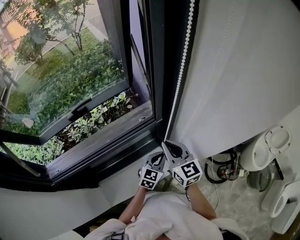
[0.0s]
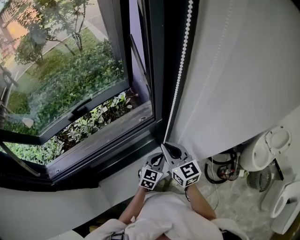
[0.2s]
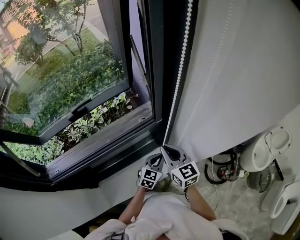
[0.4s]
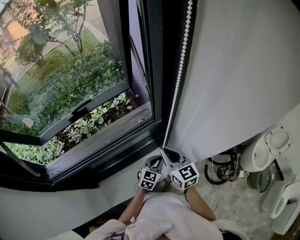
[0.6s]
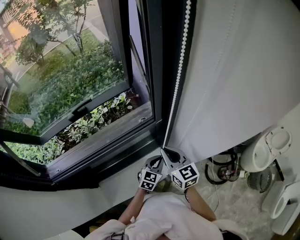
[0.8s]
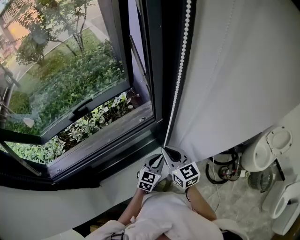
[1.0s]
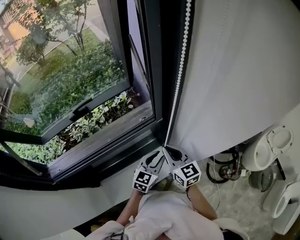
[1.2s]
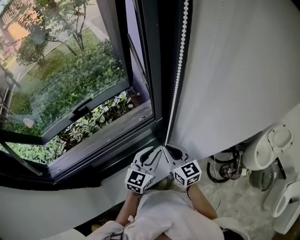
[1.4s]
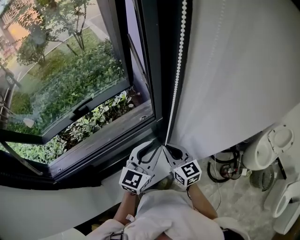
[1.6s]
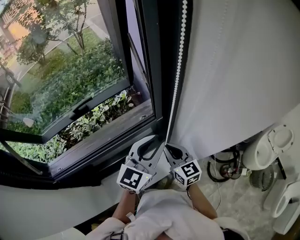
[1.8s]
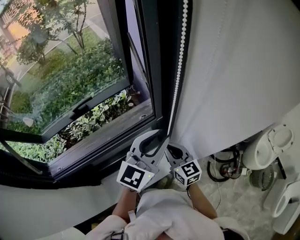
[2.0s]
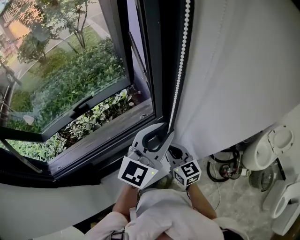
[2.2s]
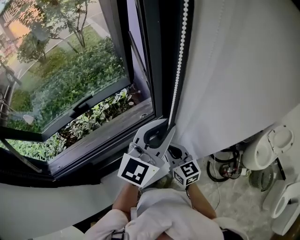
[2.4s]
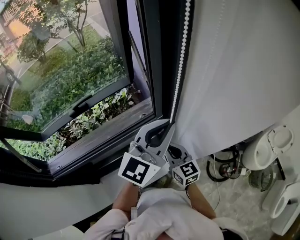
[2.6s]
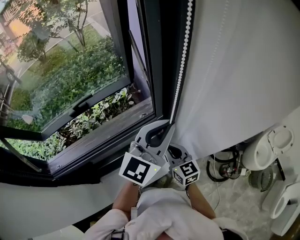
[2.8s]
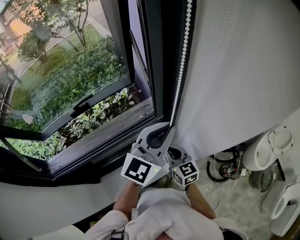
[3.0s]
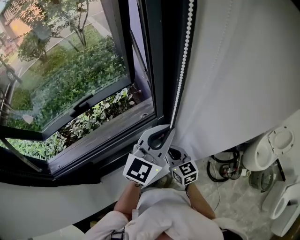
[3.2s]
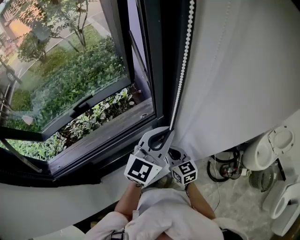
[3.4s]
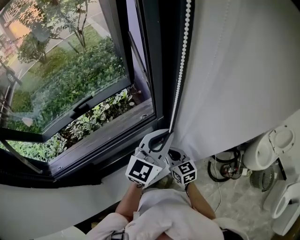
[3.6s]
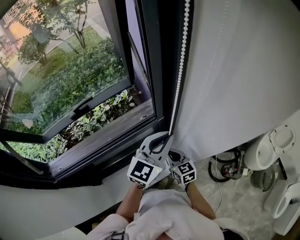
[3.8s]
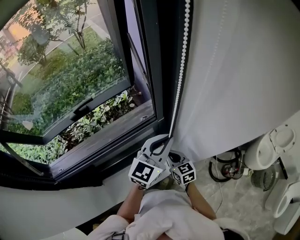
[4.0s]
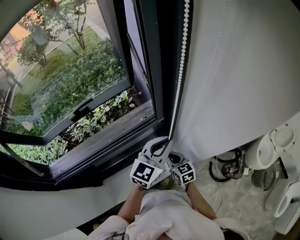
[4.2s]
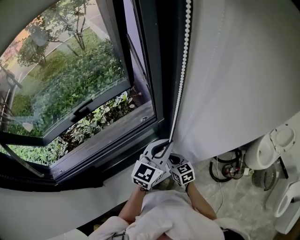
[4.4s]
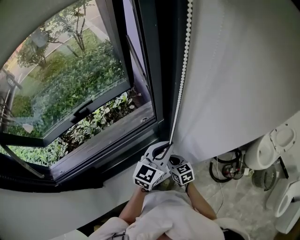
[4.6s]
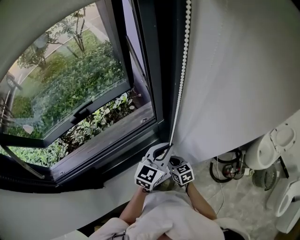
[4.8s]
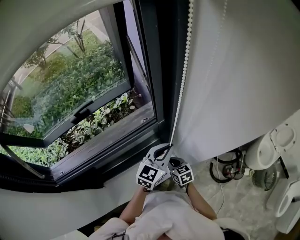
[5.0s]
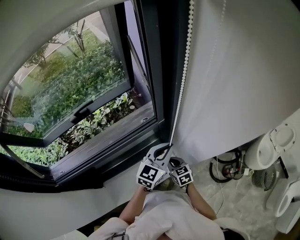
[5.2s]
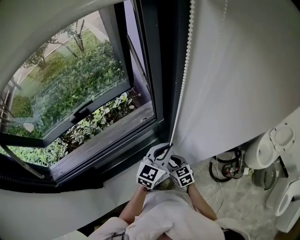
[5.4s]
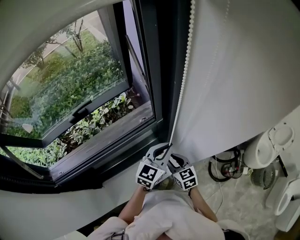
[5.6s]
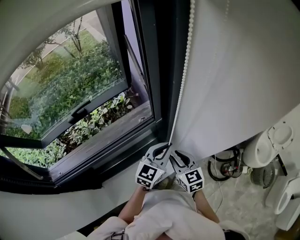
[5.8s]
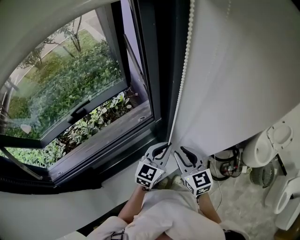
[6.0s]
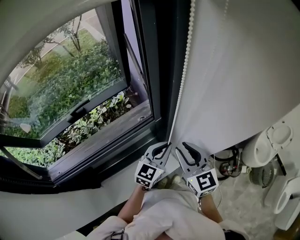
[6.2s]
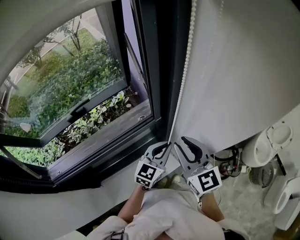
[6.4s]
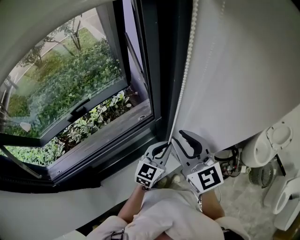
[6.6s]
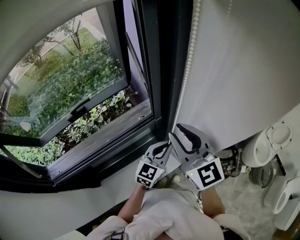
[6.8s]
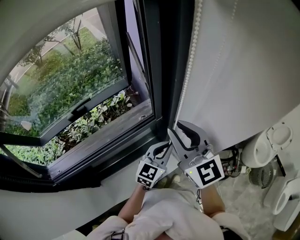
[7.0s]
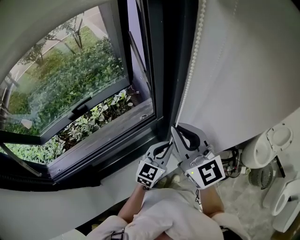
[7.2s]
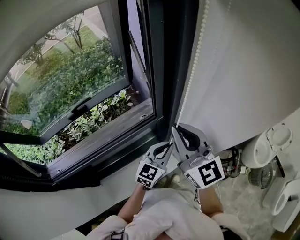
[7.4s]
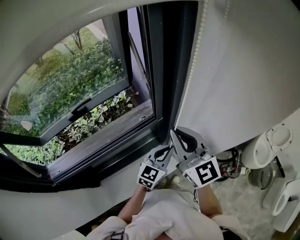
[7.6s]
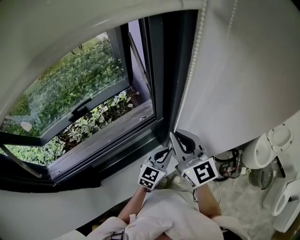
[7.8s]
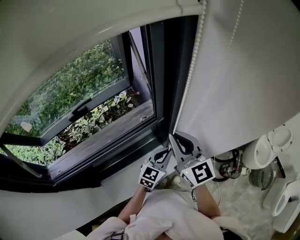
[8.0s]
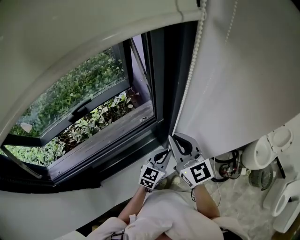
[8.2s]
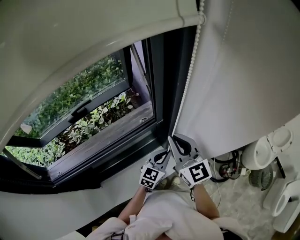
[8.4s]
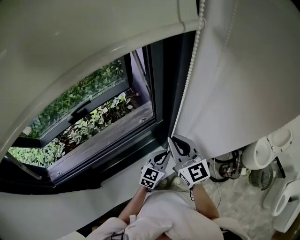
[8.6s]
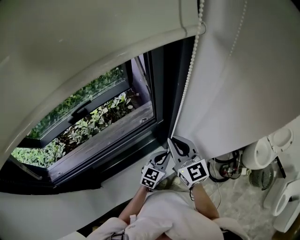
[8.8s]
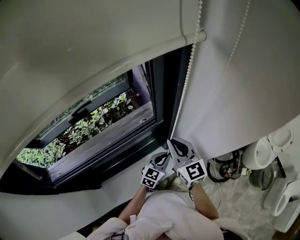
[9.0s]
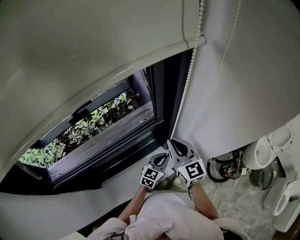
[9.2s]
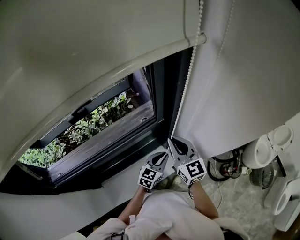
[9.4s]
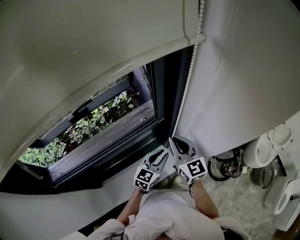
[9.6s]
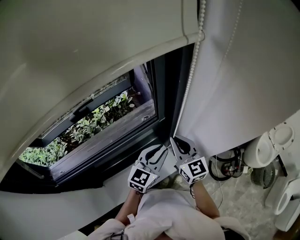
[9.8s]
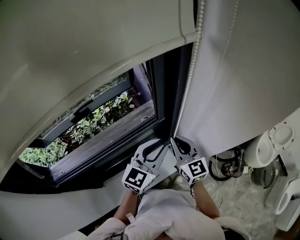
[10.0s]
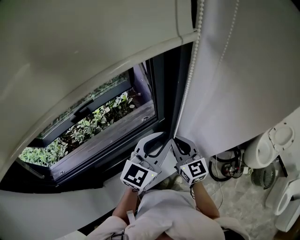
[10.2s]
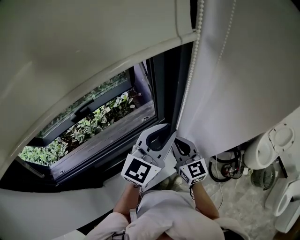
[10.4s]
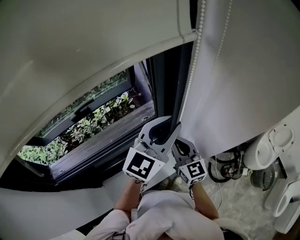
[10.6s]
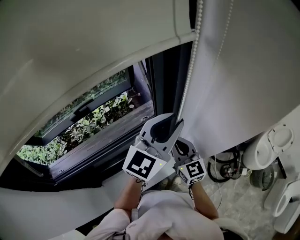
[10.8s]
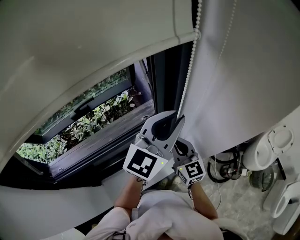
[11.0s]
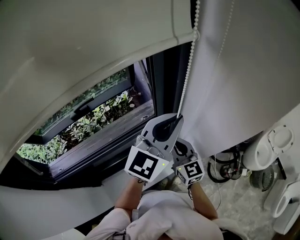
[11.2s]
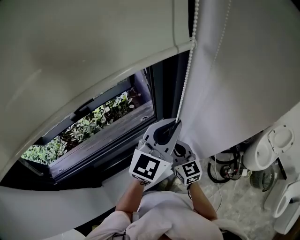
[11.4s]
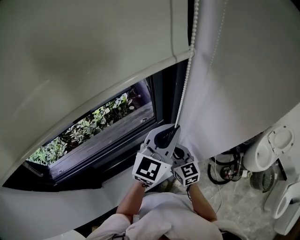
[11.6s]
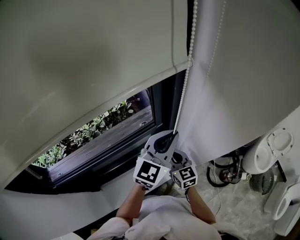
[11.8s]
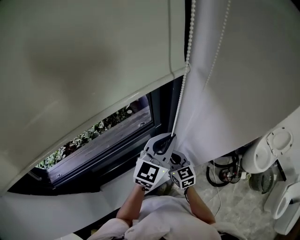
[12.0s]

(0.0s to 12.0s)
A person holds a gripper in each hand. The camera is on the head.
0.0s - 1.6s: The left gripper travels upward by about 20 cm, and opens up.
1.6s - 3.0s: The left gripper heads upward, covering about 10 cm.
3.0s - 4.4s: The two grippers go about 15 cm downward.
4.4s - 6.0s: The right gripper travels upward by some 15 cm, changes its angle by about 20 degrees, and opens.
6.0s - 7.6s: The right gripper shifts some 15 cm upward, swivels about 20 degrees, and closes.
7.6s - 9.0s: The grippers both shift downward by roughly 10 cm.
9.0s - 10.4s: The left gripper heads upward, covering some 30 cm, and changes its angle by approximately 20 degrees.
10.4s - 12.0s: The left gripper shifts roughly 5 cm downward; the right gripper moves downward, approximately 10 cm.

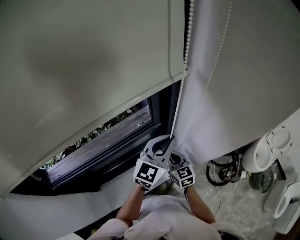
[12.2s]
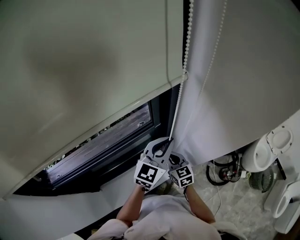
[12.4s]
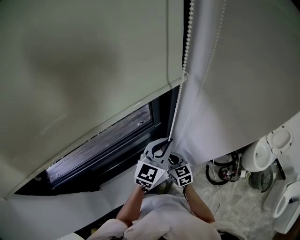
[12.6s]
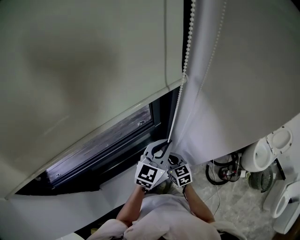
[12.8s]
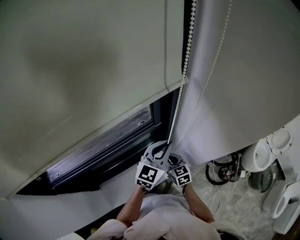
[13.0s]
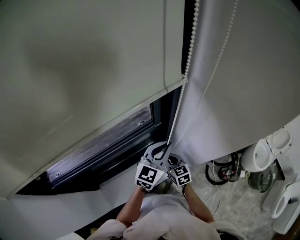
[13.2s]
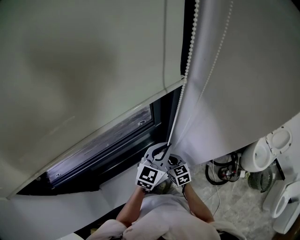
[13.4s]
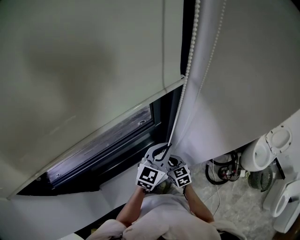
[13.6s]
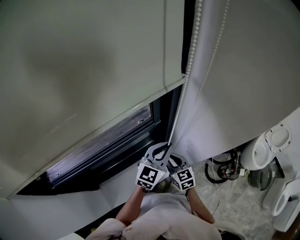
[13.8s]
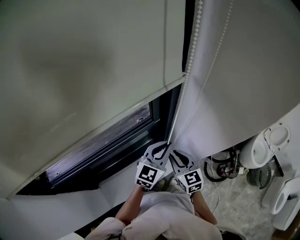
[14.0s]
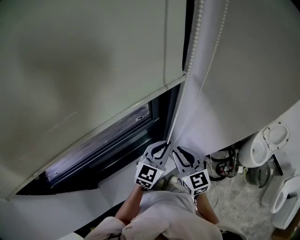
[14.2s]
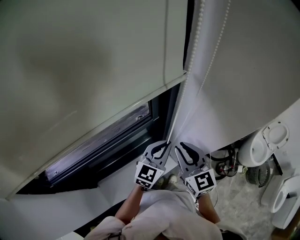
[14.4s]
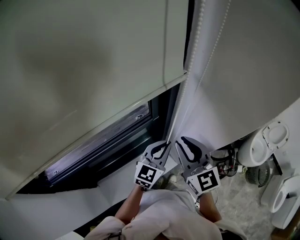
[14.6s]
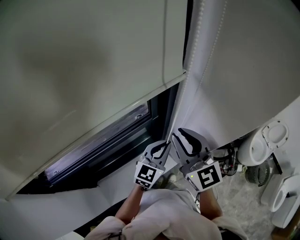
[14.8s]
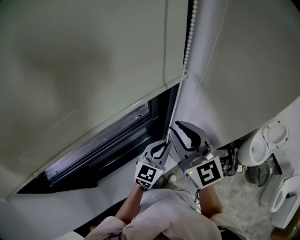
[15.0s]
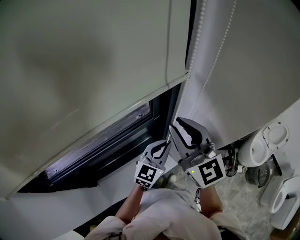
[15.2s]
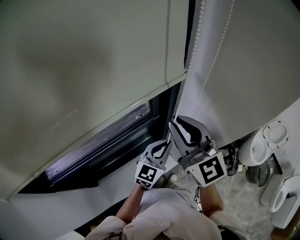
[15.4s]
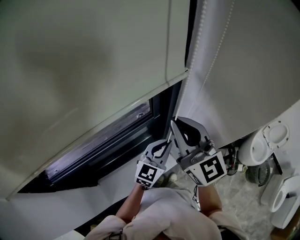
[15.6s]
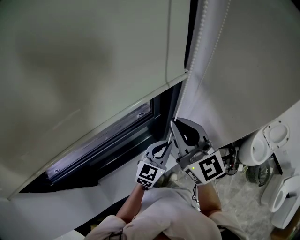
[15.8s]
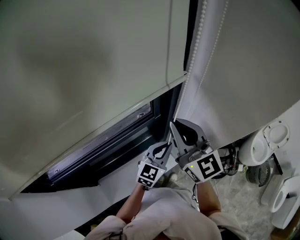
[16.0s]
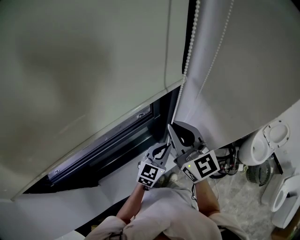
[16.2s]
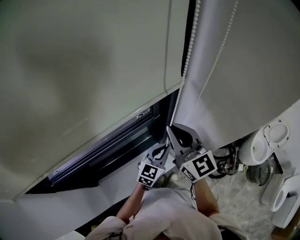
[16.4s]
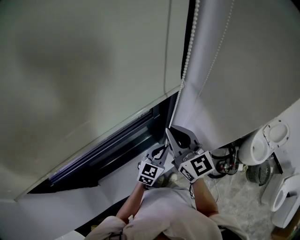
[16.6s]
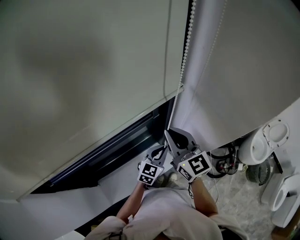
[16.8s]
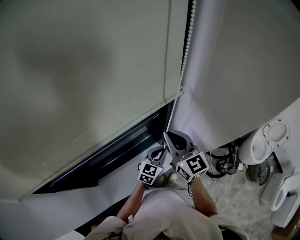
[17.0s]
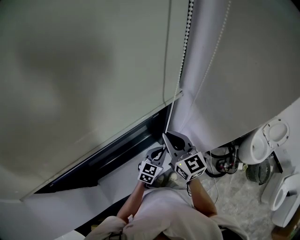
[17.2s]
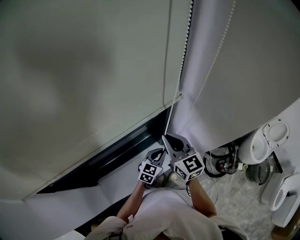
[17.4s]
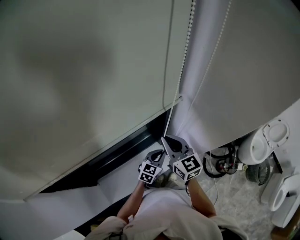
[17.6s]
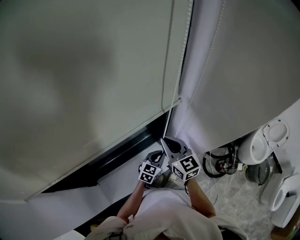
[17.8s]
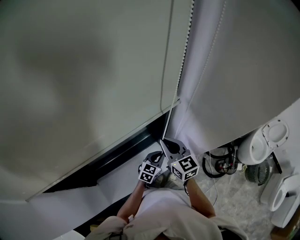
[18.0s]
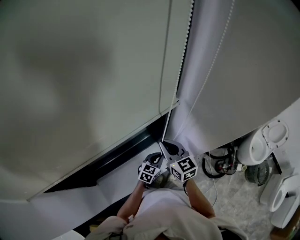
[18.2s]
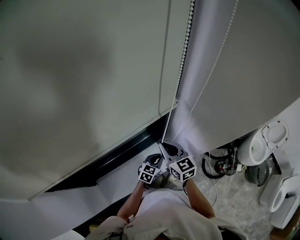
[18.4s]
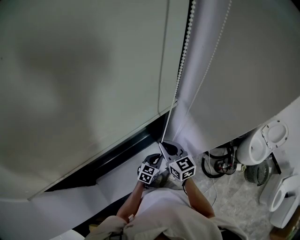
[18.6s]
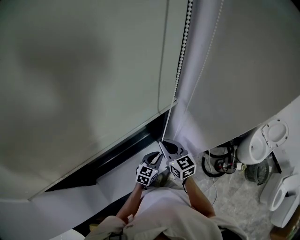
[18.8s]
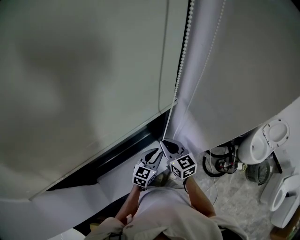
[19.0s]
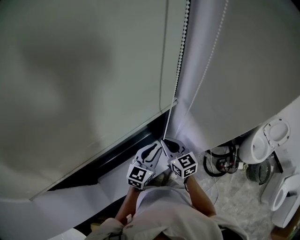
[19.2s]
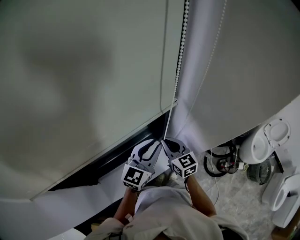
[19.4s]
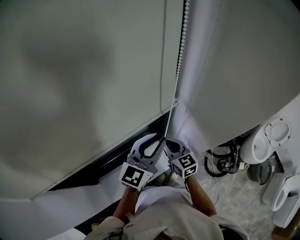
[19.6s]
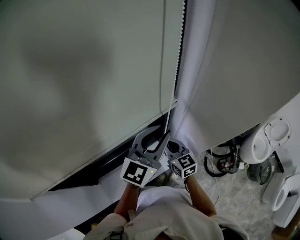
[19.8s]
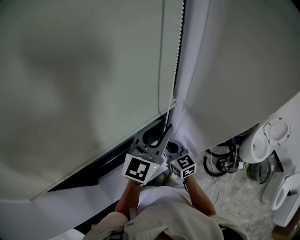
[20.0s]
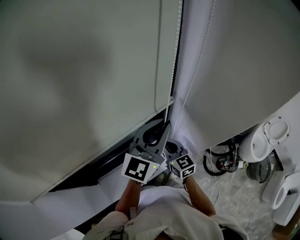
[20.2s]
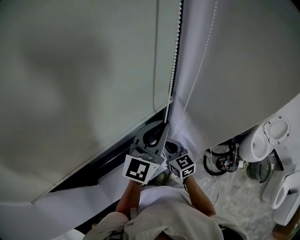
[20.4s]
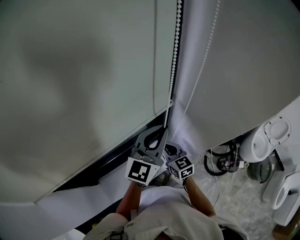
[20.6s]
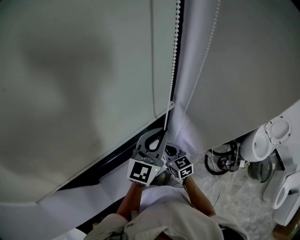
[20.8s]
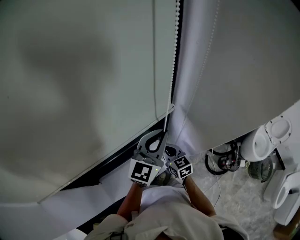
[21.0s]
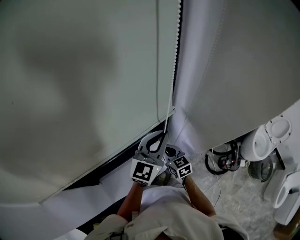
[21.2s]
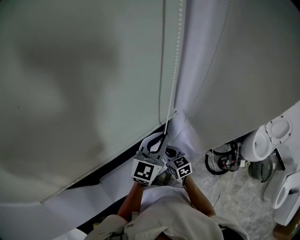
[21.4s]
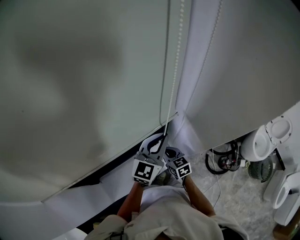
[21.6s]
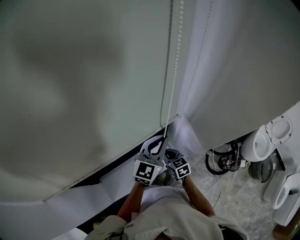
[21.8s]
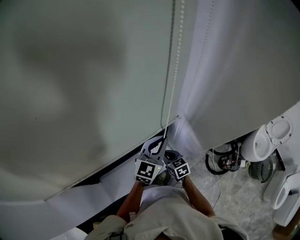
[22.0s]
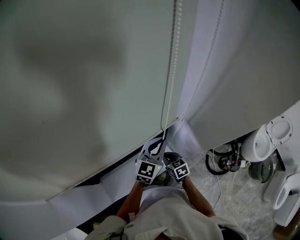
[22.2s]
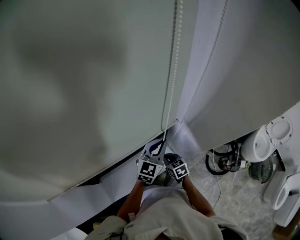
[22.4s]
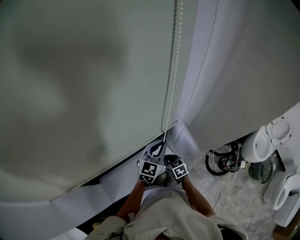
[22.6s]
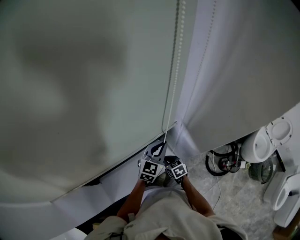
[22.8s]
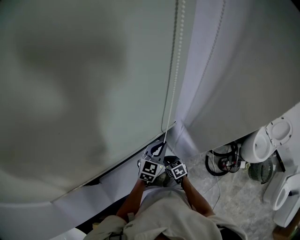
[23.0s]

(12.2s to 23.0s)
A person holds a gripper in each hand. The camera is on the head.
12.2s - 13.8s: The left gripper heads downward, covering about 5 cm.
13.8s - 15.2s: The right gripper heads upward, covering roughly 30 cm, and tilts its fingers approximately 30 degrees upward.
15.2s - 16.8s: Both grippers move downward, about 10 cm.
16.8s - 18.4s: The grippers both shift downward by some 15 cm.
18.4s - 20.0s: The left gripper is displaced upward by about 40 cm, and points its fingers approximately 40 degrees further upward.
20.0s - 21.4s: Both grippers travel together downward, roughly 10 cm.
21.4s - 23.0s: The grippers both shift downward by roughly 15 cm.

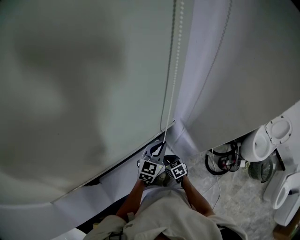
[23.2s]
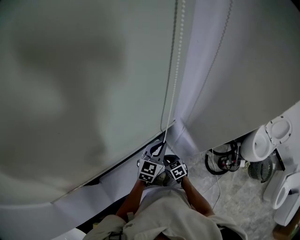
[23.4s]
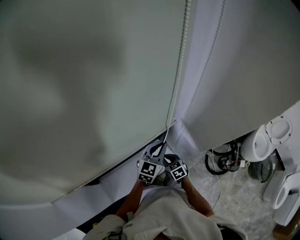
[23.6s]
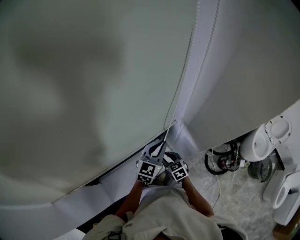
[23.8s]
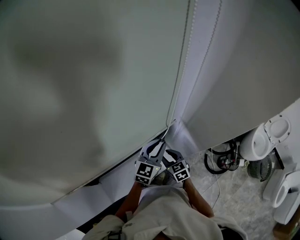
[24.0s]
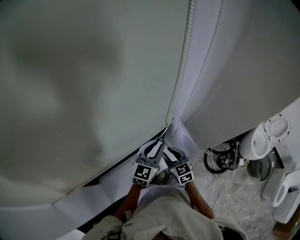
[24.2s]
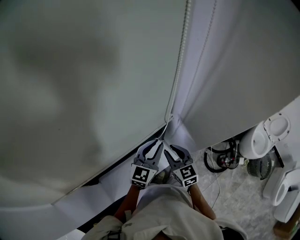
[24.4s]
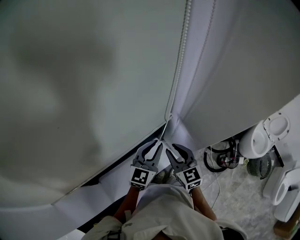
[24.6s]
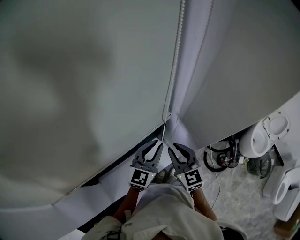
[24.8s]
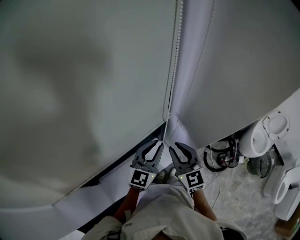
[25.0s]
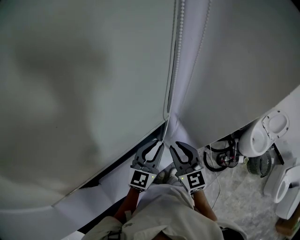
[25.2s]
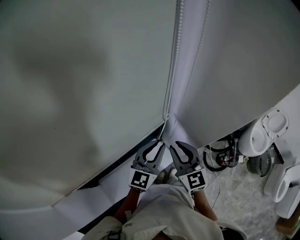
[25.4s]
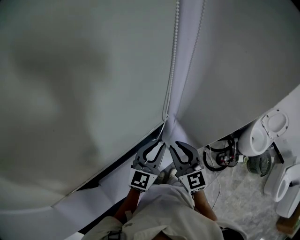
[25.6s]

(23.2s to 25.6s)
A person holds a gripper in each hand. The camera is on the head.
23.2s - 24.4s: The left gripper is displaced upward by some 5 cm. The right gripper moves upward, roughly 20 cm, changes its angle by about 30 degrees, and opens up.
24.4s - 25.6s: The right gripper heads upward, covering some 10 cm. The left gripper goes roughly 5 cm upward.
